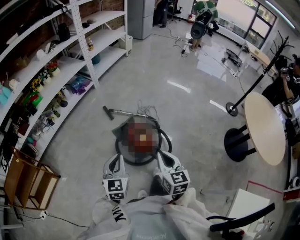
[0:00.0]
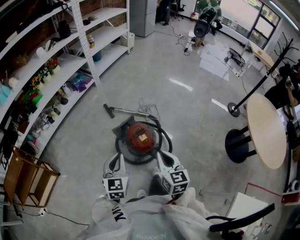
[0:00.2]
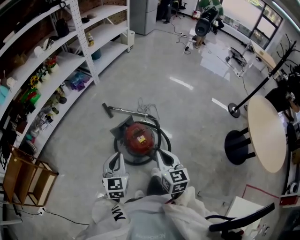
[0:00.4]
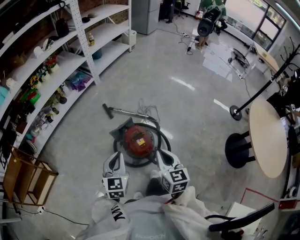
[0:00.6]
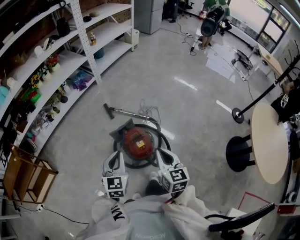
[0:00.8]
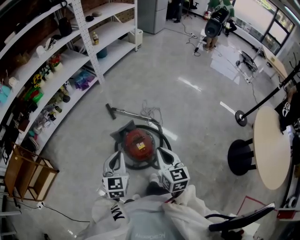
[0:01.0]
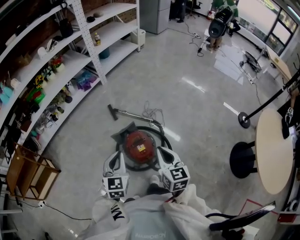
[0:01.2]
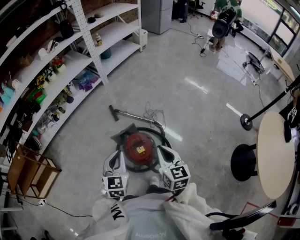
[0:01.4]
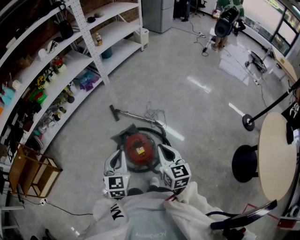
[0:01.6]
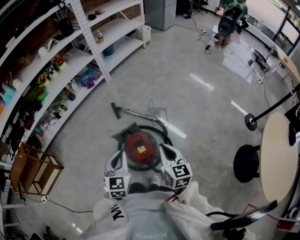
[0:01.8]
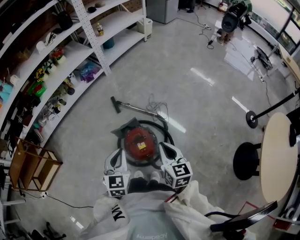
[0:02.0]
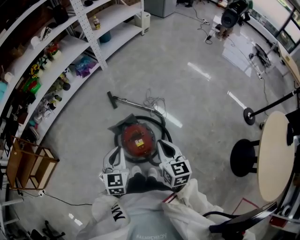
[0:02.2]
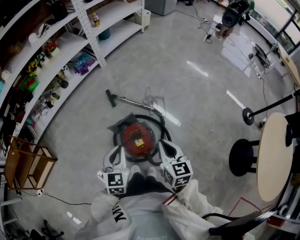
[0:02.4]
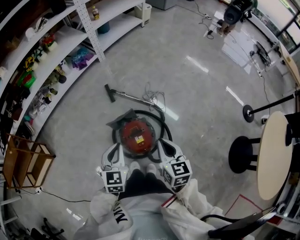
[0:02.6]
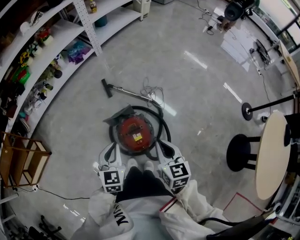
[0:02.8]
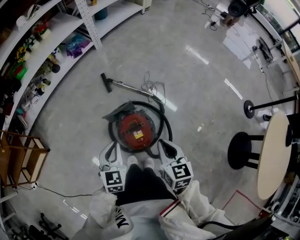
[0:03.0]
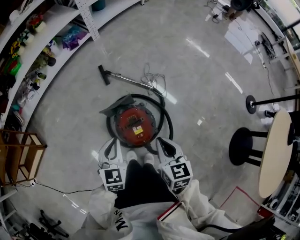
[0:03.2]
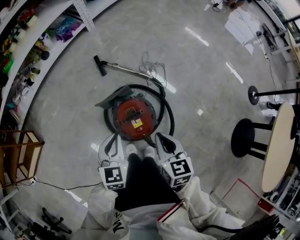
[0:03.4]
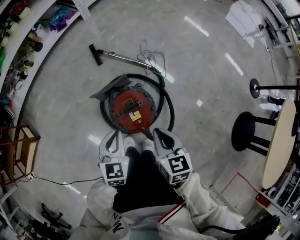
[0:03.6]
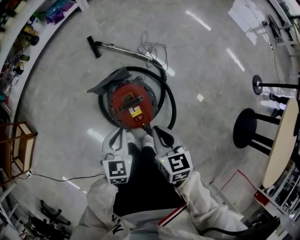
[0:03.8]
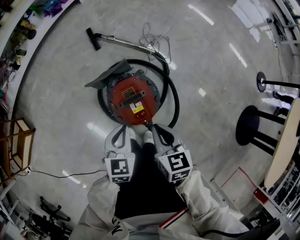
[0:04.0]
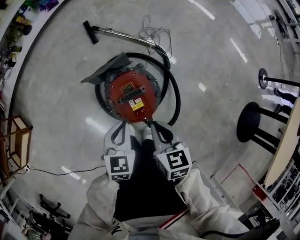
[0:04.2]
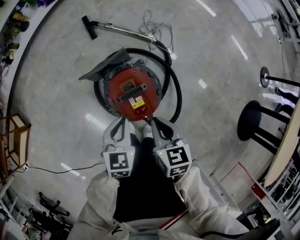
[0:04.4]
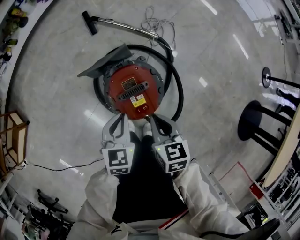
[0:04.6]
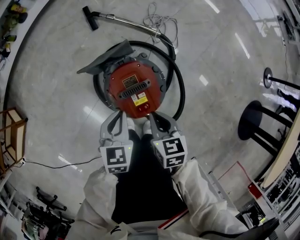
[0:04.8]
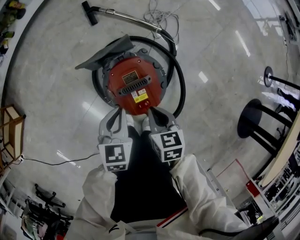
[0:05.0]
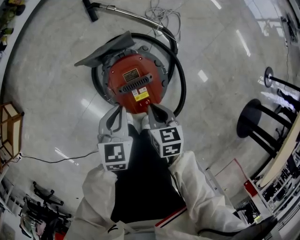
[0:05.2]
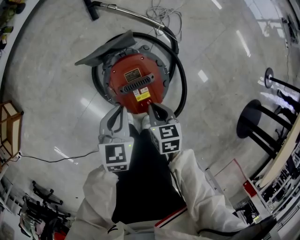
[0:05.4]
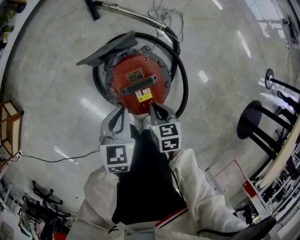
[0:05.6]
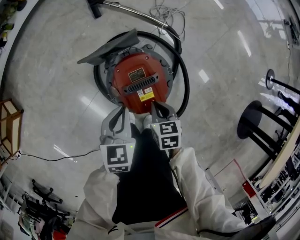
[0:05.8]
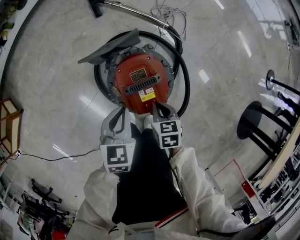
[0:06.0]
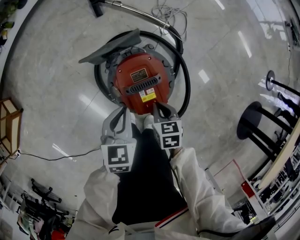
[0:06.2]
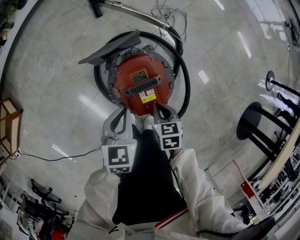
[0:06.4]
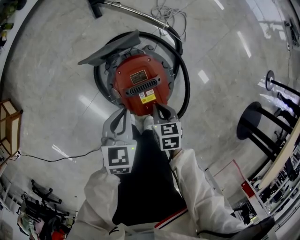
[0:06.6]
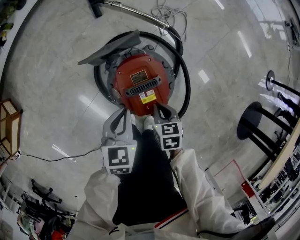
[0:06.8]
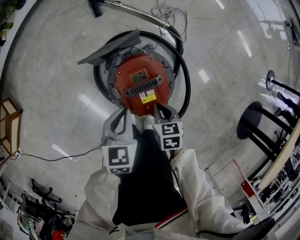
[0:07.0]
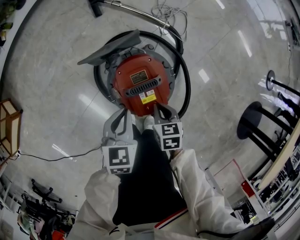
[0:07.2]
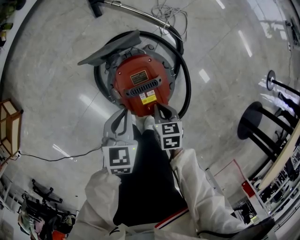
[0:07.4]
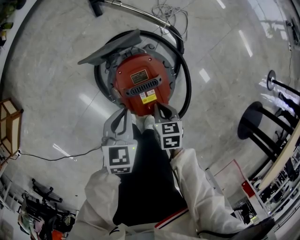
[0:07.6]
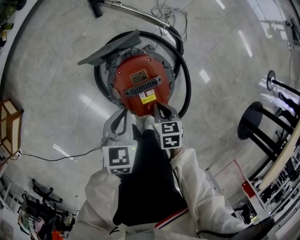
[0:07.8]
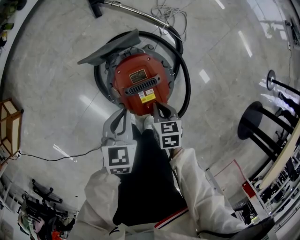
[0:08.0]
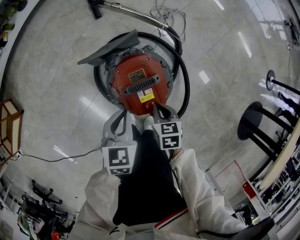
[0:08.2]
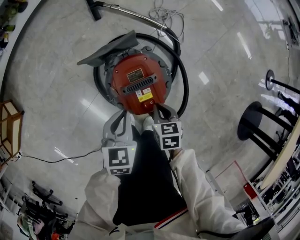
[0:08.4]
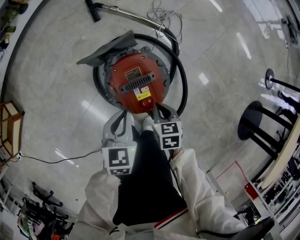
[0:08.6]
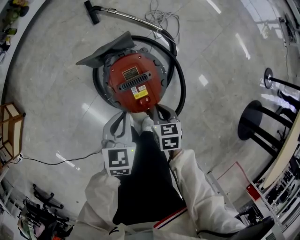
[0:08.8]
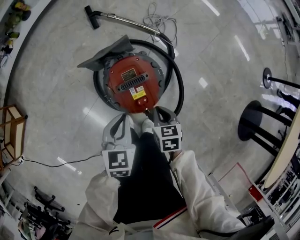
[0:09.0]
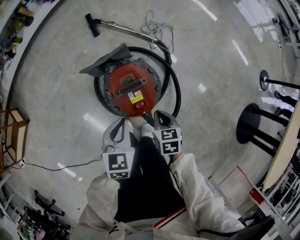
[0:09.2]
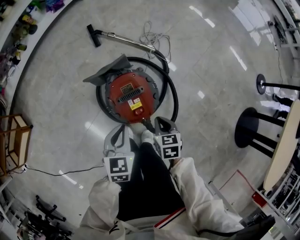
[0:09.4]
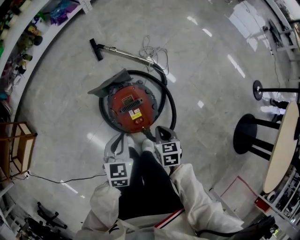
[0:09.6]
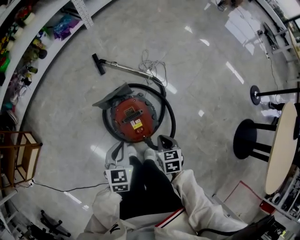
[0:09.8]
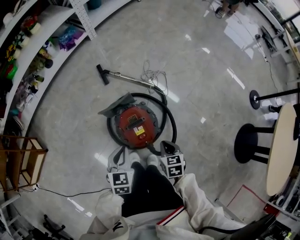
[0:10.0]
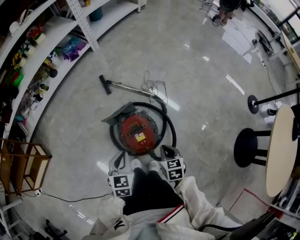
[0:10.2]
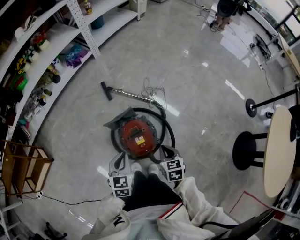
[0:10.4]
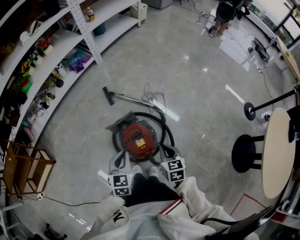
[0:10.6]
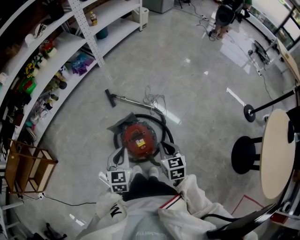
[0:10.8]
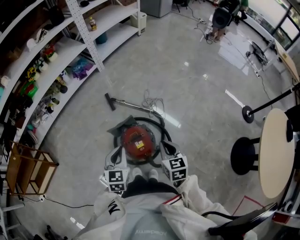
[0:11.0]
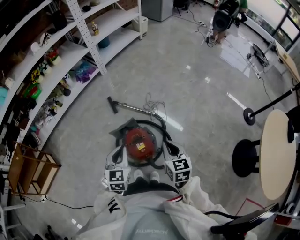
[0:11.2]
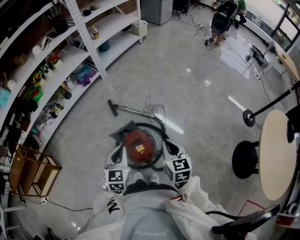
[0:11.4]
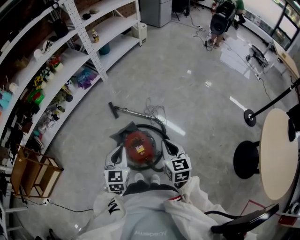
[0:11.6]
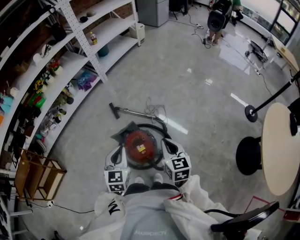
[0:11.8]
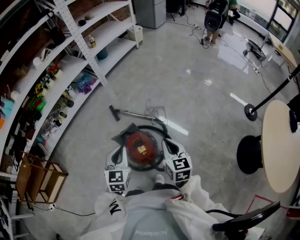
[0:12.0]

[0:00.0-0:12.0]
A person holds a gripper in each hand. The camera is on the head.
0:00.0 to 0:01.6: The grippers both shift forward and to the right by roughly 20 cm.
0:01.6 to 0:03.0: The two grippers go about 10 cm downward.
0:03.0 to 0:04.4: The grippers both shift downward by roughly 20 cm.
0:04.4 to 0:06.0: The right gripper shifts approximately 15 cm downward.
0:06.0 to 0:07.6: Both grippers stay put.
0:07.6 to 0:09.0: The left gripper moves approximately 5 cm.
0:09.0 to 0:10.4: The two grippers go some 20 cm upward.
0:10.4 to 0:12.0: The grippers both shift upward by roughly 20 cm. The right gripper turns by approximately 20 degrees.

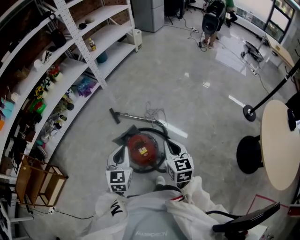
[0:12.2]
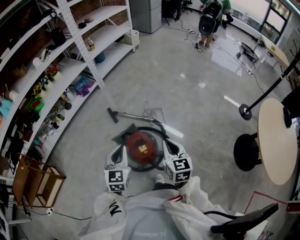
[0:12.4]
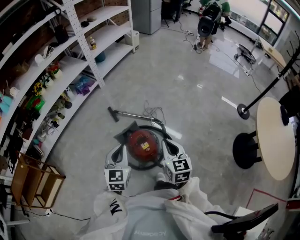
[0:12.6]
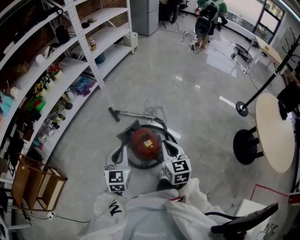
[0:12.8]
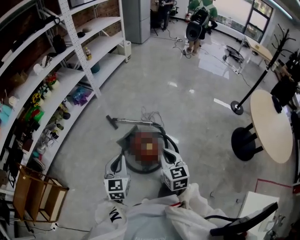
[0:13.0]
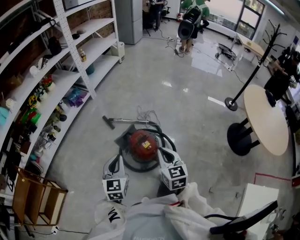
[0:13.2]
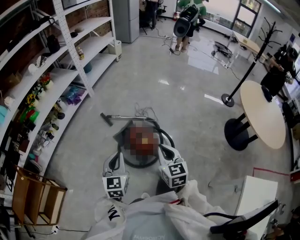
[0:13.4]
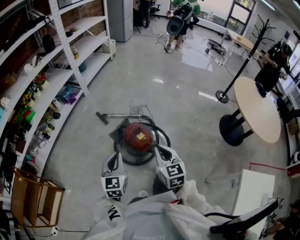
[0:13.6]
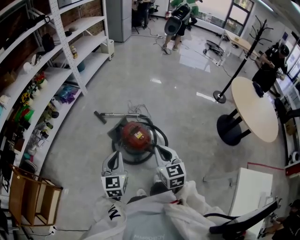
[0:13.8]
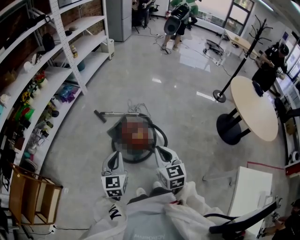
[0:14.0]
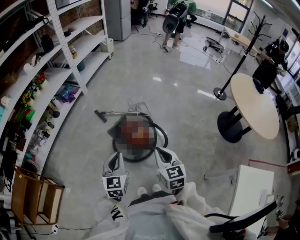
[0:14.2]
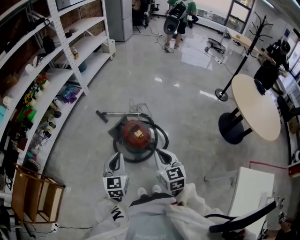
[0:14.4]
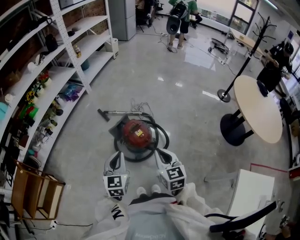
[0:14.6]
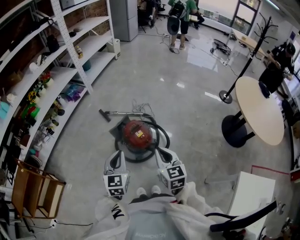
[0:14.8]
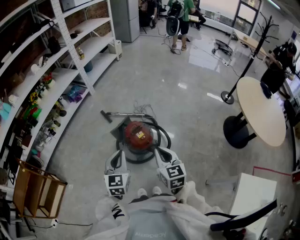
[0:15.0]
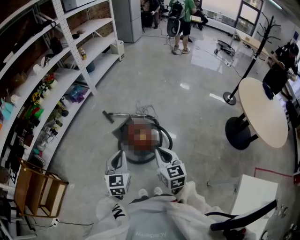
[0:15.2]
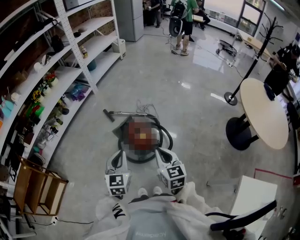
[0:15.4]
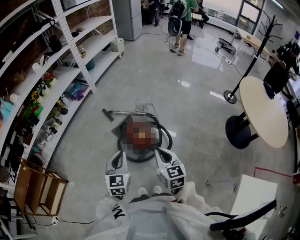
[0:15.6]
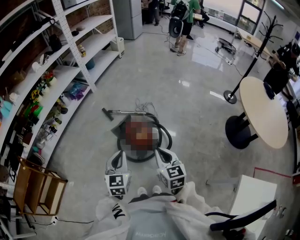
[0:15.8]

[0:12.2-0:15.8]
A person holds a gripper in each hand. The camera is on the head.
0:12.2 to 0:14.0: Both grippers move backward and to the left, approximately 25 cm.
0:14.0 to 0:15.8: The grippers stay close to where they were, moving slightly.

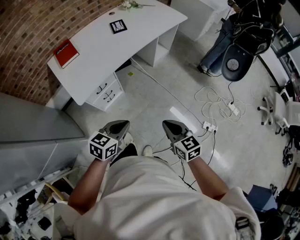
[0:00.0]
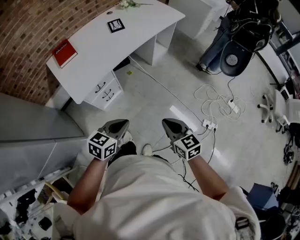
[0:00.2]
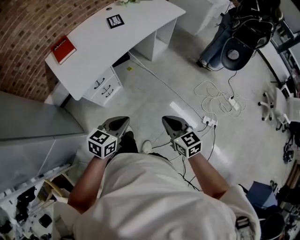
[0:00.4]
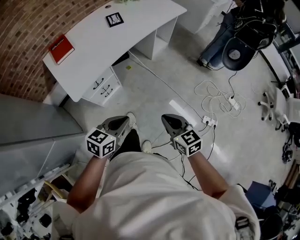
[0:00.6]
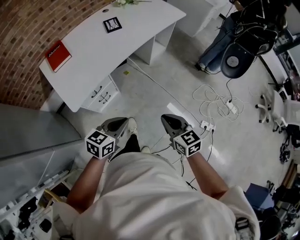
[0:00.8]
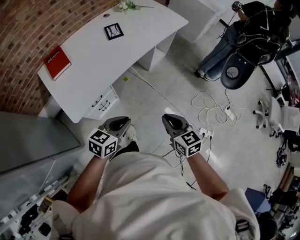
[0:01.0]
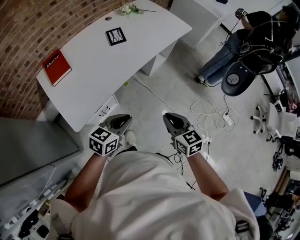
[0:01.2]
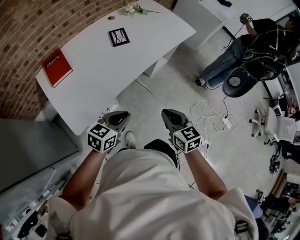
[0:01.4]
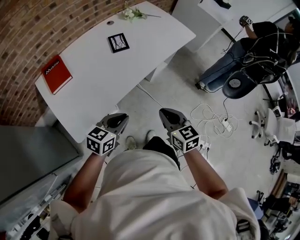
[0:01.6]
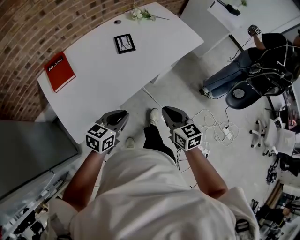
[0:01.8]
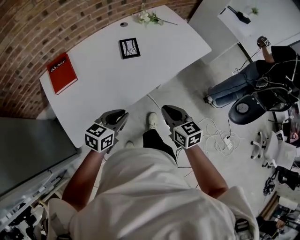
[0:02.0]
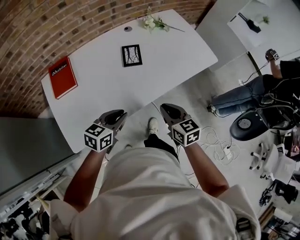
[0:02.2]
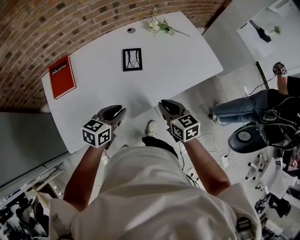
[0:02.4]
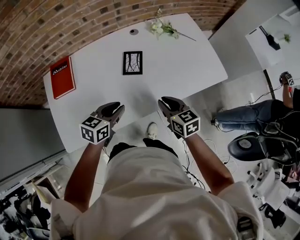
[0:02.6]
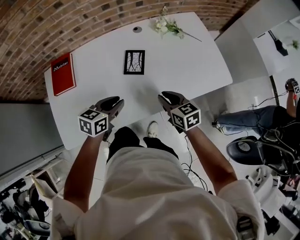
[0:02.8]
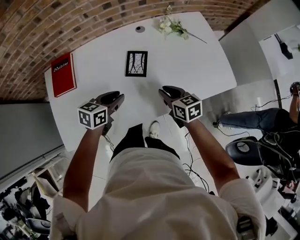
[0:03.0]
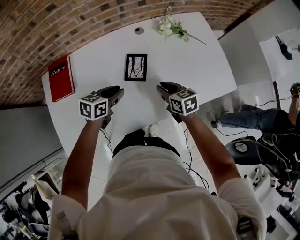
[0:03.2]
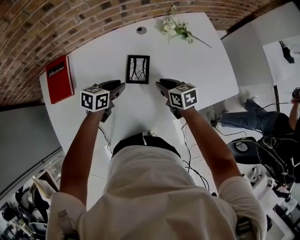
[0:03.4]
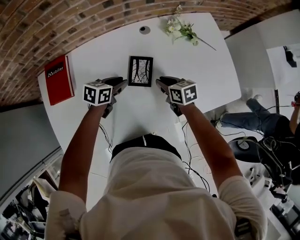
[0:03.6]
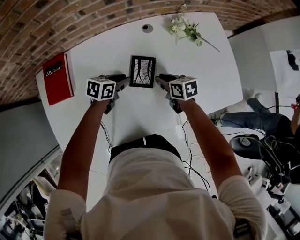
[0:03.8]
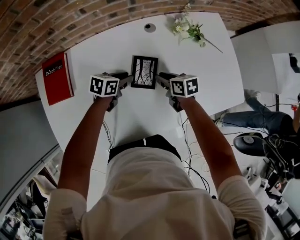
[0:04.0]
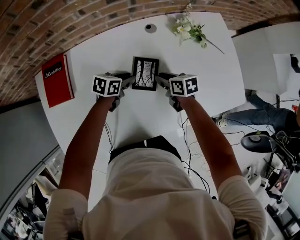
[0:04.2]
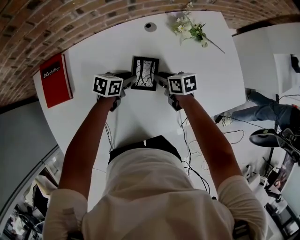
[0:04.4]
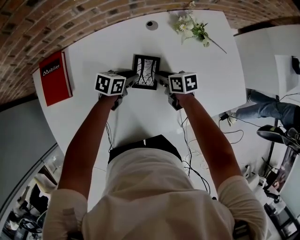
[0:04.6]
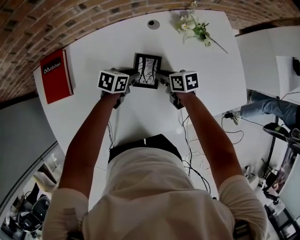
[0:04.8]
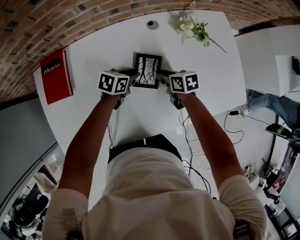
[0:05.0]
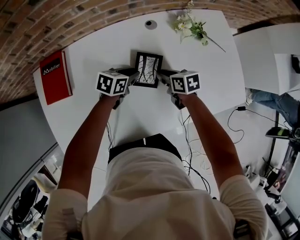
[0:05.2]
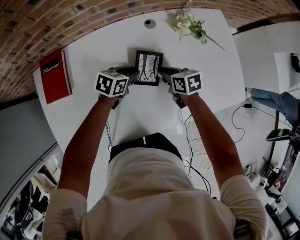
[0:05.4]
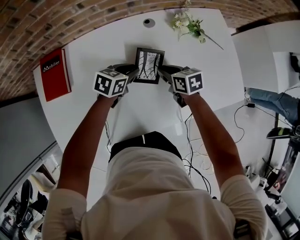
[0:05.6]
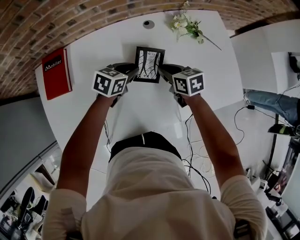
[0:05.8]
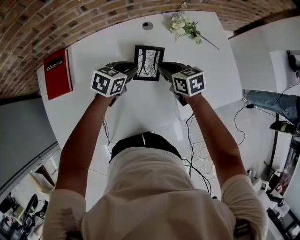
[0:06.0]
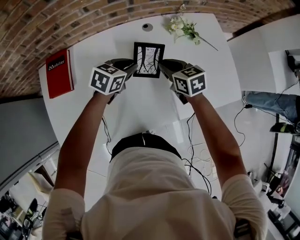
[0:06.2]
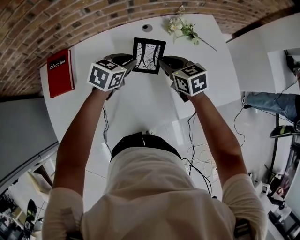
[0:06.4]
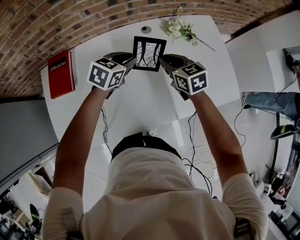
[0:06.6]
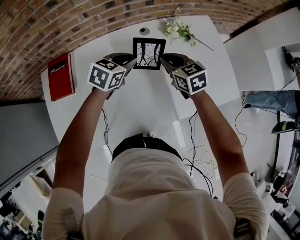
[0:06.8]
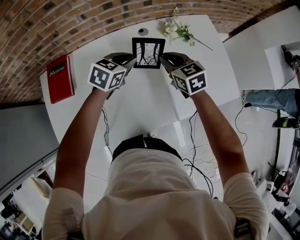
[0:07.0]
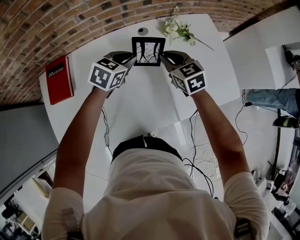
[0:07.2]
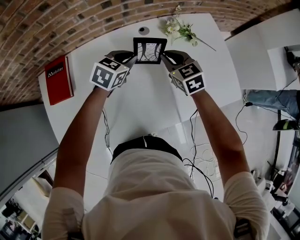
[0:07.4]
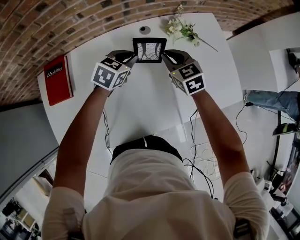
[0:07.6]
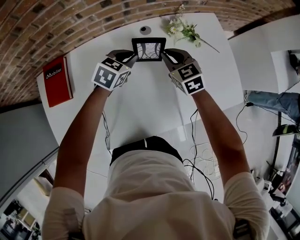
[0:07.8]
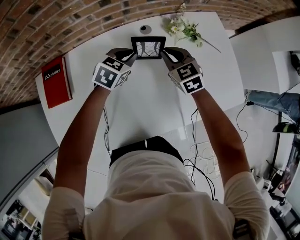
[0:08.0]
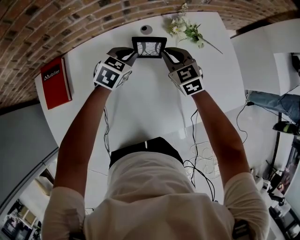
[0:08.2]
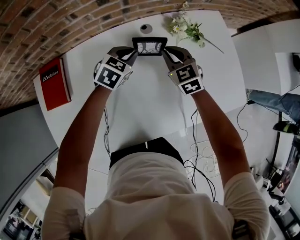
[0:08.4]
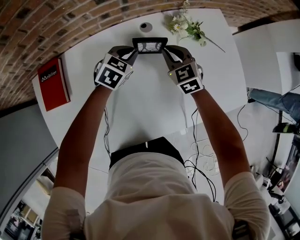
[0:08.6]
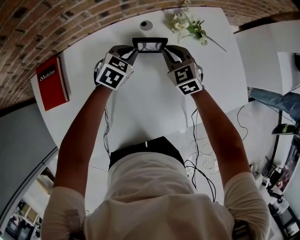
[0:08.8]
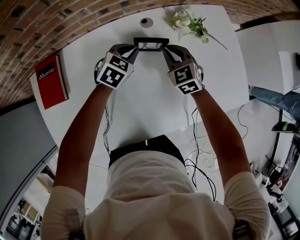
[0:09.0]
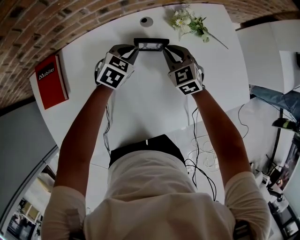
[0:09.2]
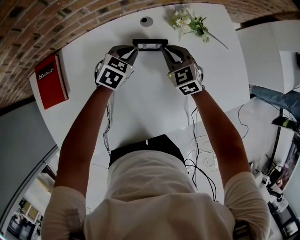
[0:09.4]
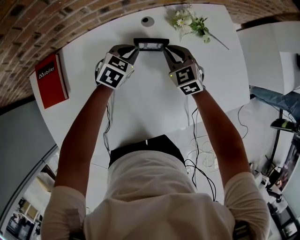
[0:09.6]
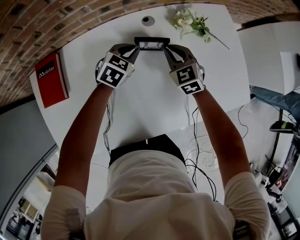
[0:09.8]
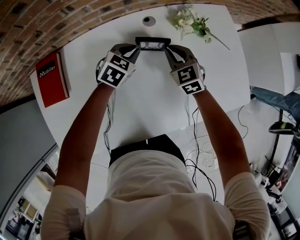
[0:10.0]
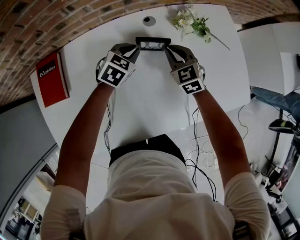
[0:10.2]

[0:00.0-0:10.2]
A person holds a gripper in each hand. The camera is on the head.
0:00.0 to 0:01.4: Both grippers travel together forward, approximately 25 cm.
0:01.4 to 0:03.0: The right gripper moves some 50 cm, and swivels some 30 degrees. Meanwhile the left gripper changes place by roughly 40 cm, and changes its angle by approximately 30 degrees.
0:03.0 to 0:04.4: The left gripper heads forward and downward, covering approximately 20 cm. Meanwhile the right gripper shifts roughly 20 cm forward, downward and to the left, and turns by roughly 20 degrees.
0:04.4 to 0:05.8: Both grippers move upward, roughly 5 cm.
0:05.8 to 0:07.2: Both grippers move upward, some 10 cm. The right gripper rotates approximately 30 degrees.
0:07.2 to 0:08.8: The two grippers go some 10 cm downward and forward.
0:08.8 to 0:10.2: There are only small adjustments of the grippers.
